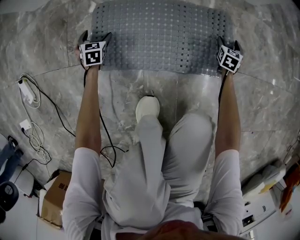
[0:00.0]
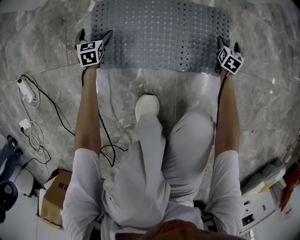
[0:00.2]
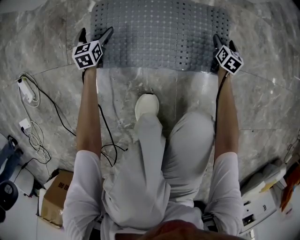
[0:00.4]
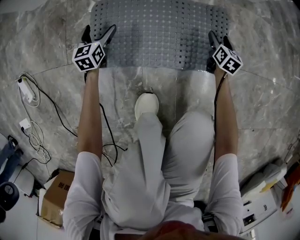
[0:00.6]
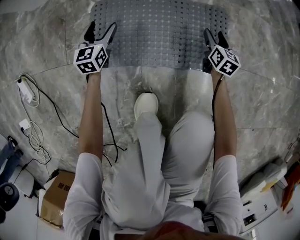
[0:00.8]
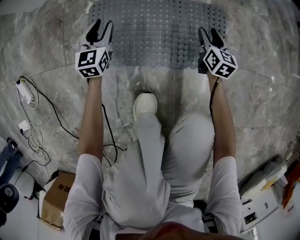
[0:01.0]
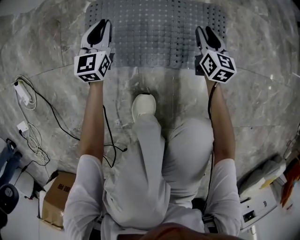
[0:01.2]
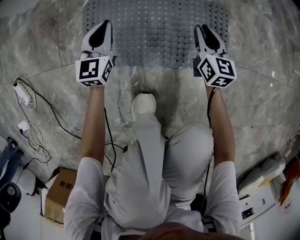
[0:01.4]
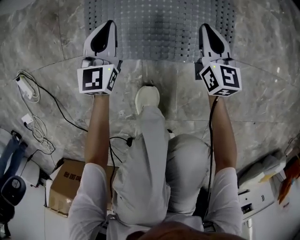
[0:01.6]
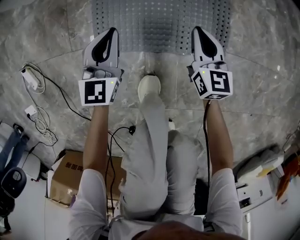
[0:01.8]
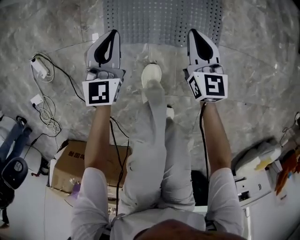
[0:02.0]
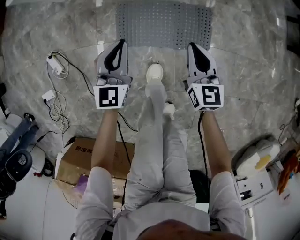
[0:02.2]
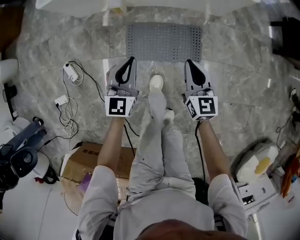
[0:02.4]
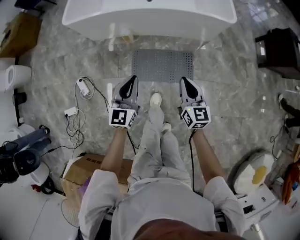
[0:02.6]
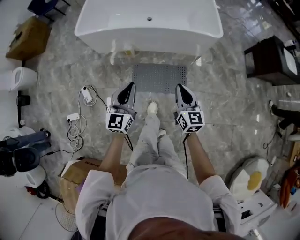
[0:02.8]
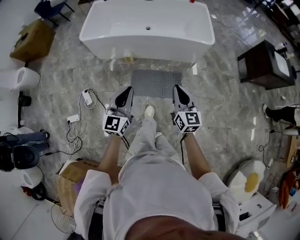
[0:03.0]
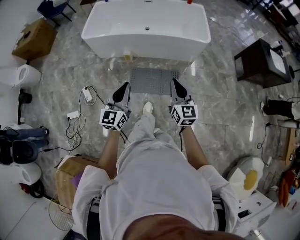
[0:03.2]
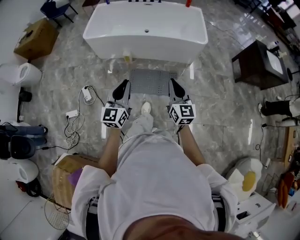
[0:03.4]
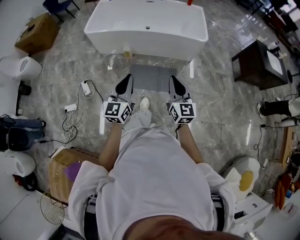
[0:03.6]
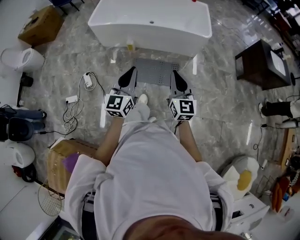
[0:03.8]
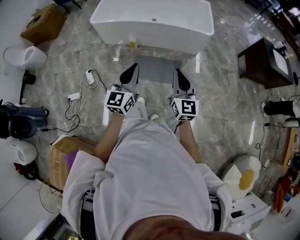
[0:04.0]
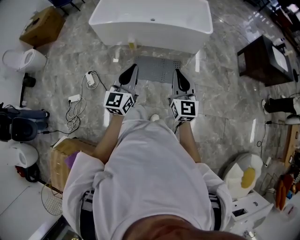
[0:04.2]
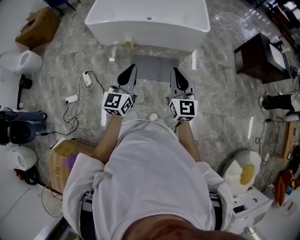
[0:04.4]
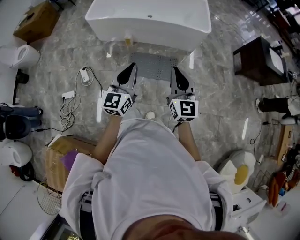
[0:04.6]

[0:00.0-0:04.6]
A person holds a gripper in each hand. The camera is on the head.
0.0 to 1.6 s: The left gripper goes roughly 25 cm upward and to the right, changes its angle by some 30 degrees, and closes up, while the right gripper goes about 25 cm to the left and upward, rotates approximately 40 degrees, and closes up.
1.6 to 3.0 s: The grippers both shift upward by some 80 cm.
3.0 to 4.6 s: Both grippers travel together backward and upward, roughly 15 cm.

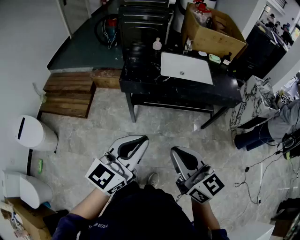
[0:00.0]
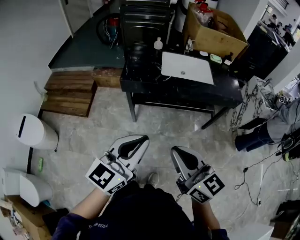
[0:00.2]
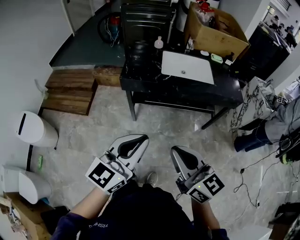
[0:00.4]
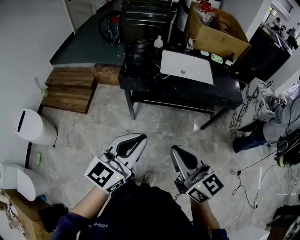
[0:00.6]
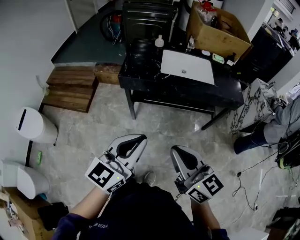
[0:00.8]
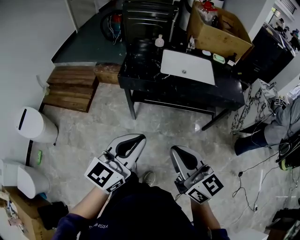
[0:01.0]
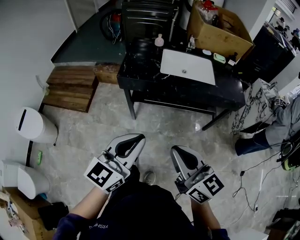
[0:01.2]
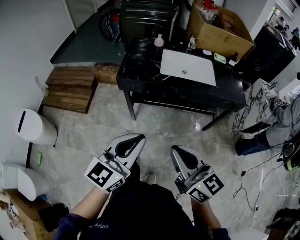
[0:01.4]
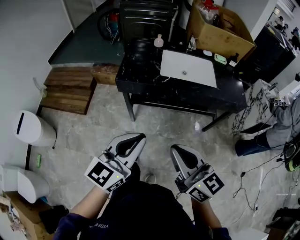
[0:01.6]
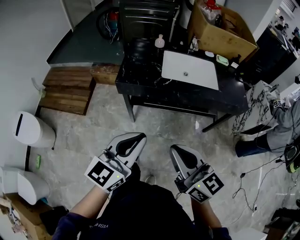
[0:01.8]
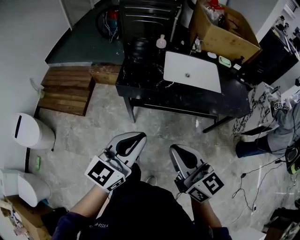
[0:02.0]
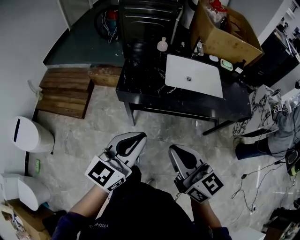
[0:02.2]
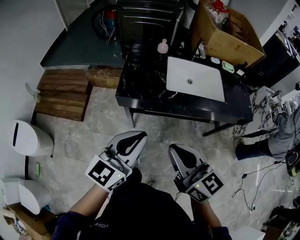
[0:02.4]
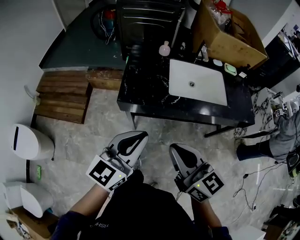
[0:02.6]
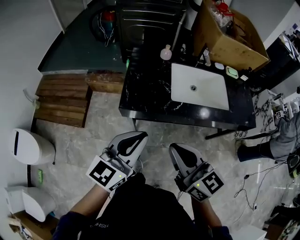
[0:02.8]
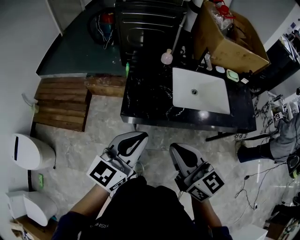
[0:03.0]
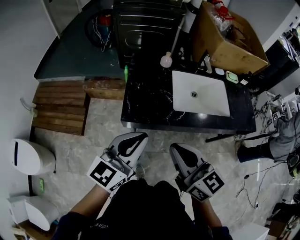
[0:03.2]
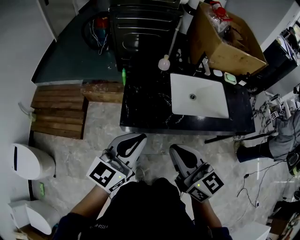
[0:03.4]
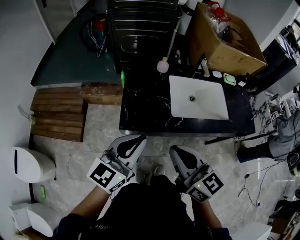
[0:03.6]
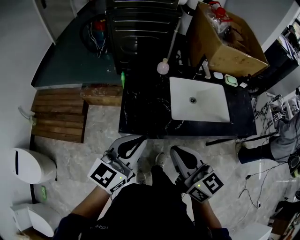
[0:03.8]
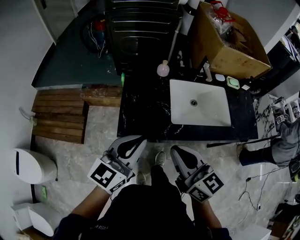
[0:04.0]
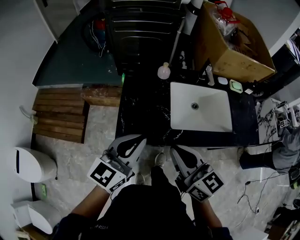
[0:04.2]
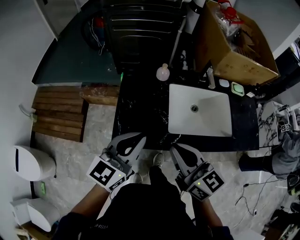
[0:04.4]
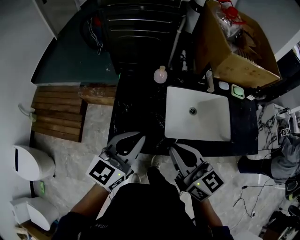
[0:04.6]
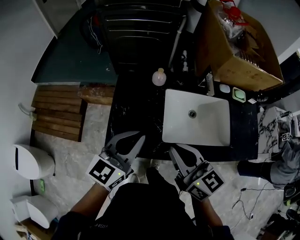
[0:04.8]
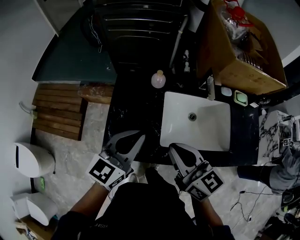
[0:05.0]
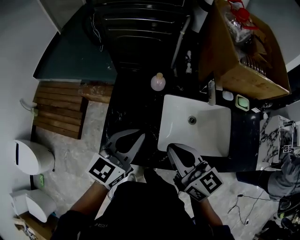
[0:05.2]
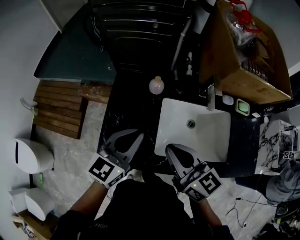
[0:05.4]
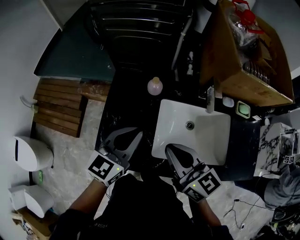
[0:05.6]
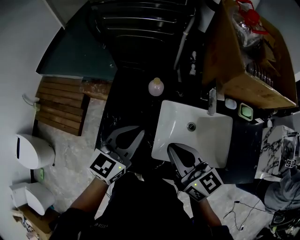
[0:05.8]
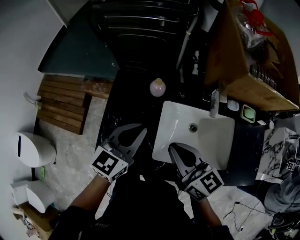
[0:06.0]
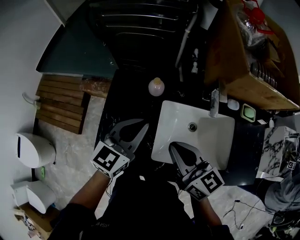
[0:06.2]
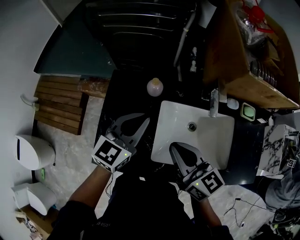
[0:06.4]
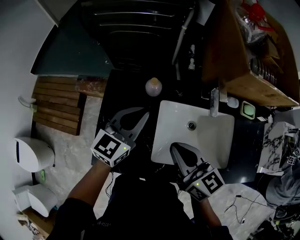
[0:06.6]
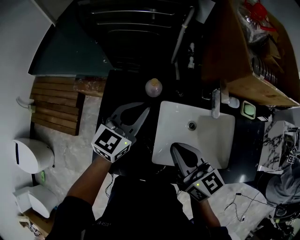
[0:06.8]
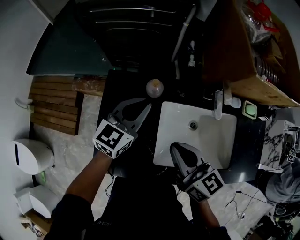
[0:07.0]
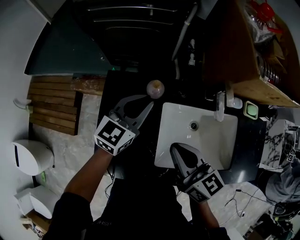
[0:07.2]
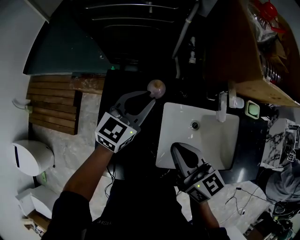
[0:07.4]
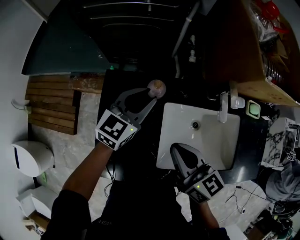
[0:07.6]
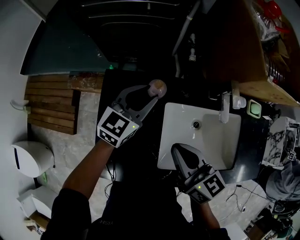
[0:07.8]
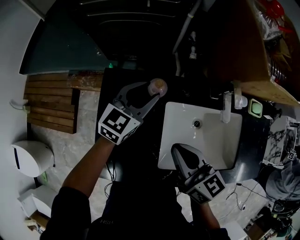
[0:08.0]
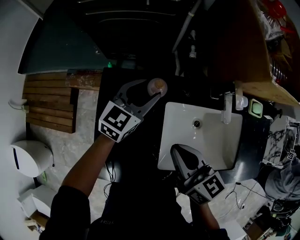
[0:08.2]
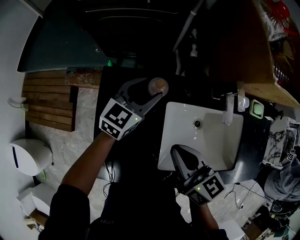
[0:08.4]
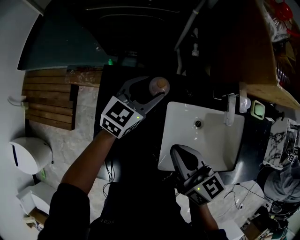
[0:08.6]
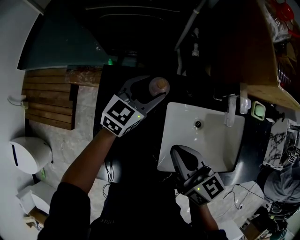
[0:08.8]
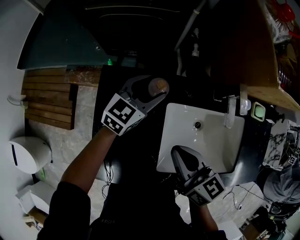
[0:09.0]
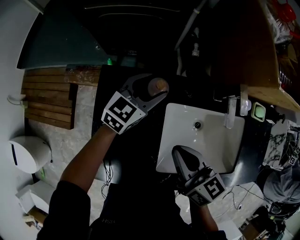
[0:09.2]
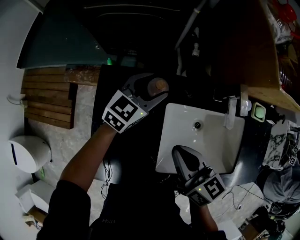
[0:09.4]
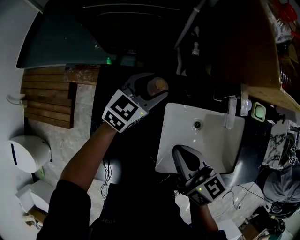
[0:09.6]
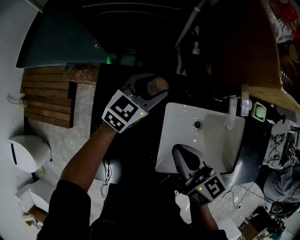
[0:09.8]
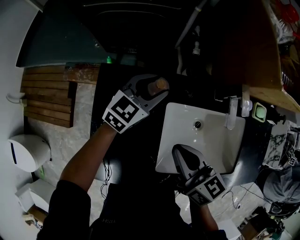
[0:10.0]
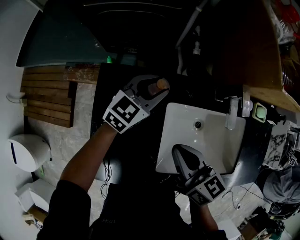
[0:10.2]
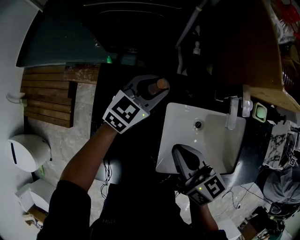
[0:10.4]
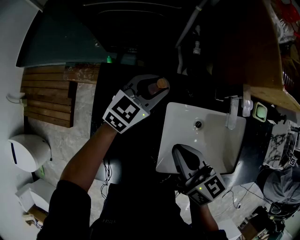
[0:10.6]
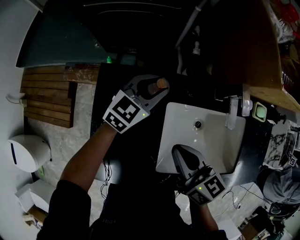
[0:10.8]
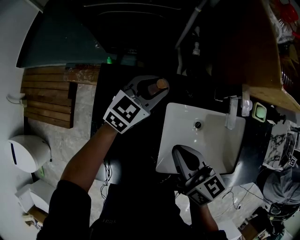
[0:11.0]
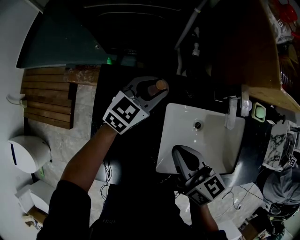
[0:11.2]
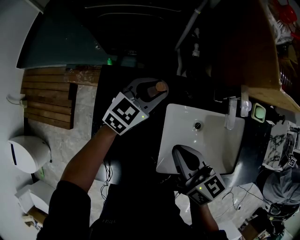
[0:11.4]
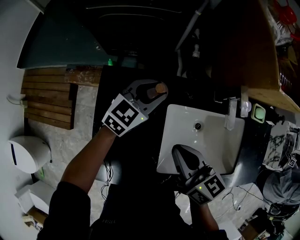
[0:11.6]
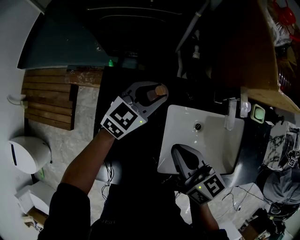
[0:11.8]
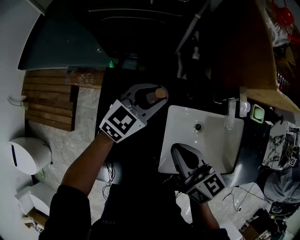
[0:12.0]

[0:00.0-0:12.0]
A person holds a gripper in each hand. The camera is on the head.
0.0 to 1.6 s: The two grippers go approximately 5 cm forward.
1.6 to 3.0 s: Both grippers move forward and to the left, some 30 cm.
3.0 to 4.4 s: The two grippers go about 15 cm forward.
4.4 to 6.0 s: Both grippers move forward and to the right, approximately 20 cm.
6.0 to 7.6 s: The right gripper heads forward, covering approximately 5 cm. The left gripper is displaced forward and downward by some 15 cm, and opens its fingers.
7.6 to 9.0 s: The left gripper moves downward, approximately 5 cm, and opens up.
9.0 to 10.4 s: The left gripper closes up.
10.4 to 12.0 s: The grippers make only small movements.

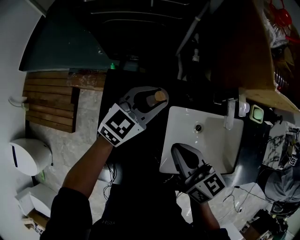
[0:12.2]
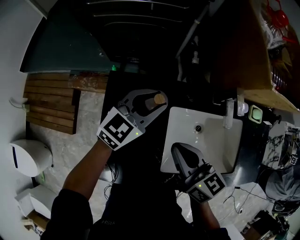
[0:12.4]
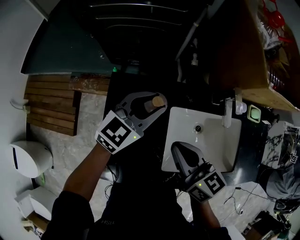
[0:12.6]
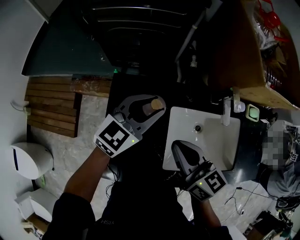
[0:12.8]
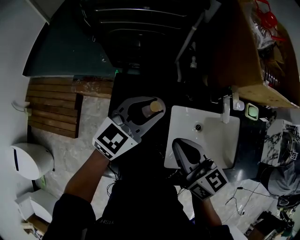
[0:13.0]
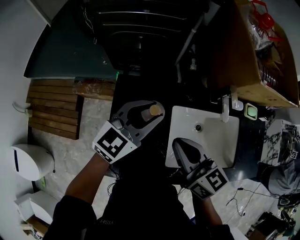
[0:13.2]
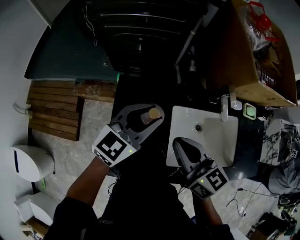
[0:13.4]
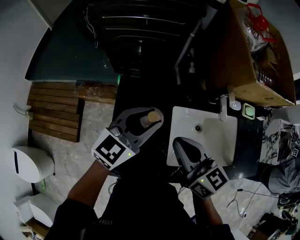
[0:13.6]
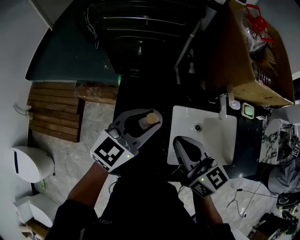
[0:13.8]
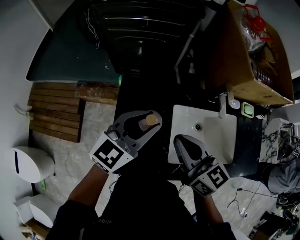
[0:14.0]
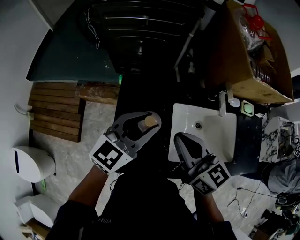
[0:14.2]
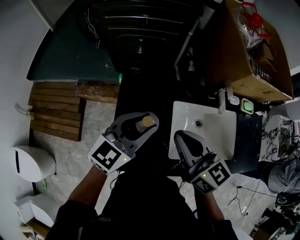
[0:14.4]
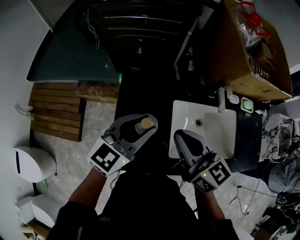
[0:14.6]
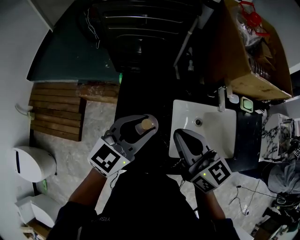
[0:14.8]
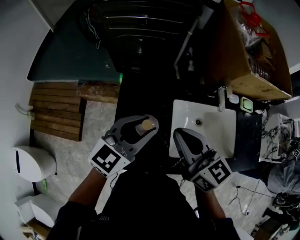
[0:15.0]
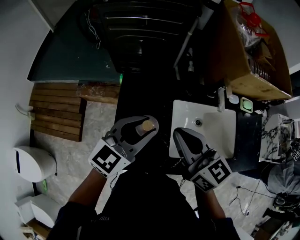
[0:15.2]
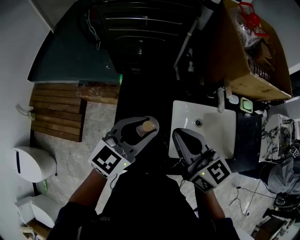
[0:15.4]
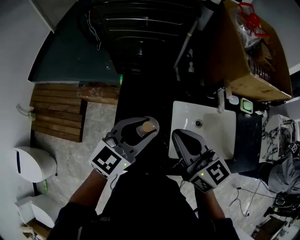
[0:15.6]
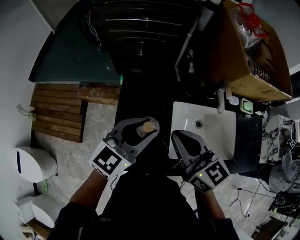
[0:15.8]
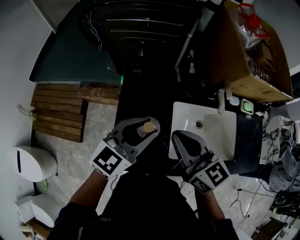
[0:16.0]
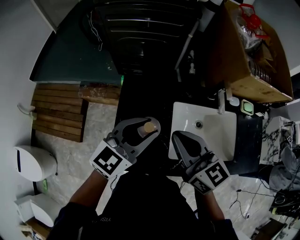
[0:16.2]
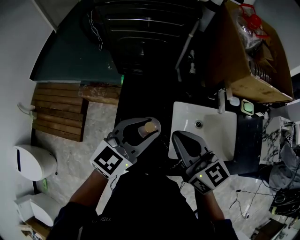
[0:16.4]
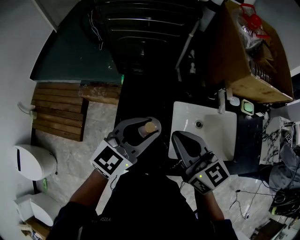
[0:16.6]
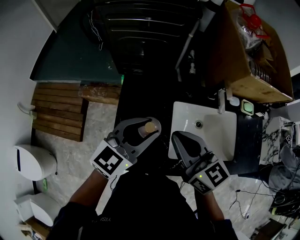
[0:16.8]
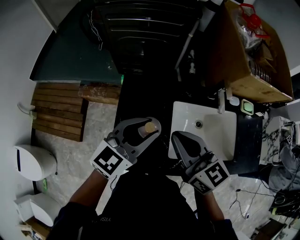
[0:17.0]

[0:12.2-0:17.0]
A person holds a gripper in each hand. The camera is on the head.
12.2 to 13.8 s: The right gripper travels upward by some 10 cm; the left gripper goes roughly 15 cm backward and upward.
13.8 to 15.4 s: The left gripper is displaced backward by some 5 cm.
15.4 to 17.0 s: The two grippers keep their place.

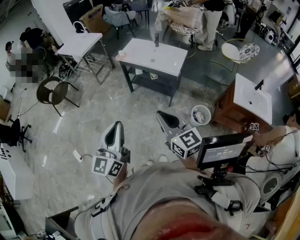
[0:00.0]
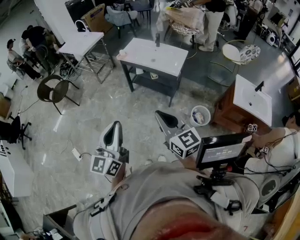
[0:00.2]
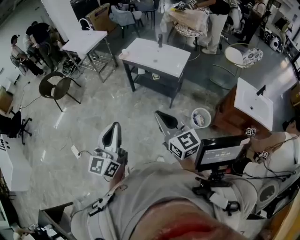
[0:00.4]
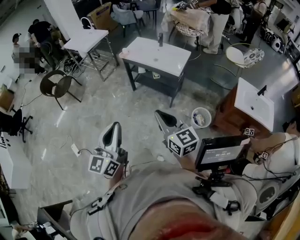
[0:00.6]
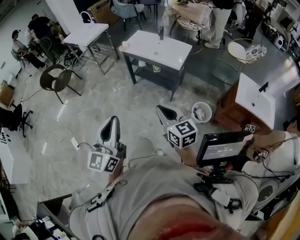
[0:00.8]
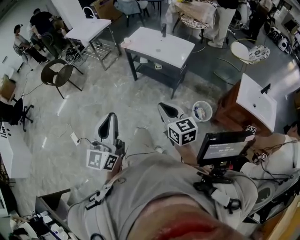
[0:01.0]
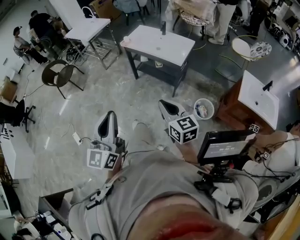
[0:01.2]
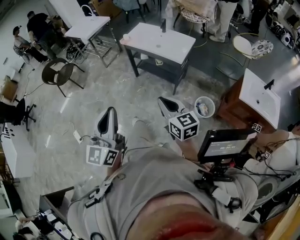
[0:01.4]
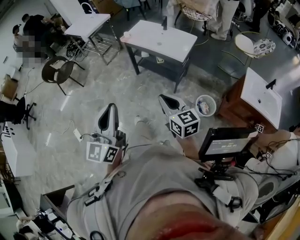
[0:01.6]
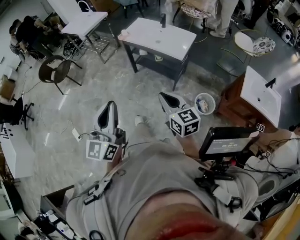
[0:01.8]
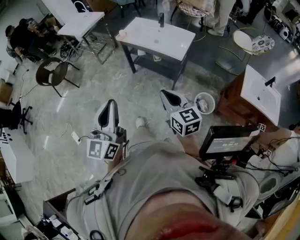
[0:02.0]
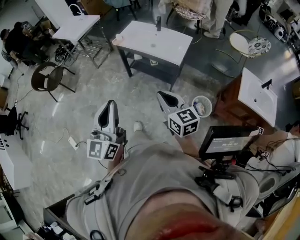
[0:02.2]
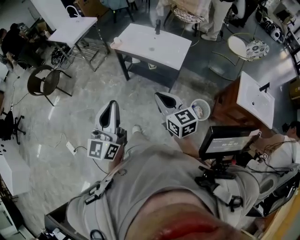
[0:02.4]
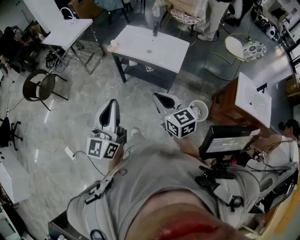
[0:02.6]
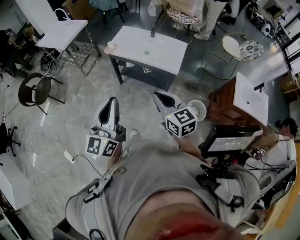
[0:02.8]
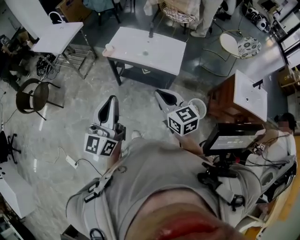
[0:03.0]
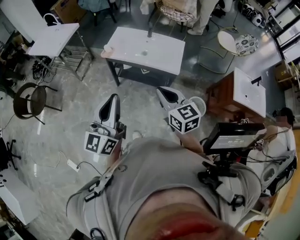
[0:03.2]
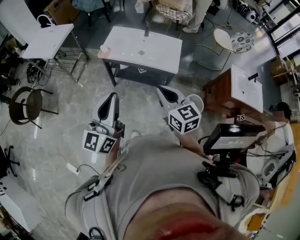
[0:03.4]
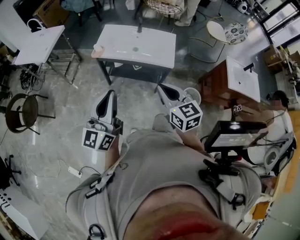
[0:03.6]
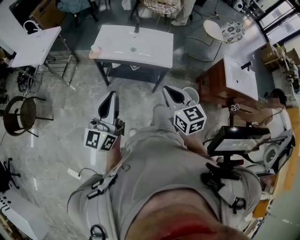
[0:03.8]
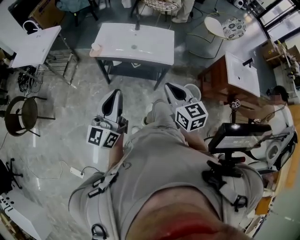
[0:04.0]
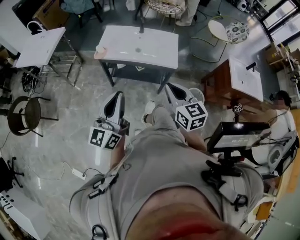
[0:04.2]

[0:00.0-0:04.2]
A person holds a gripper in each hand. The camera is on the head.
0.0 to 1.4 s: The right gripper moves downward and to the right, roughly 10 cm.
1.4 to 2.8 s: Both grippers move forward, roughly 25 cm.
2.8 to 4.2 s: The left gripper moves forward and to the left, some 15 cm, while the right gripper heads forward, covering approximately 5 cm, and rotates about 20 degrees.
